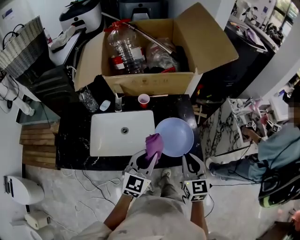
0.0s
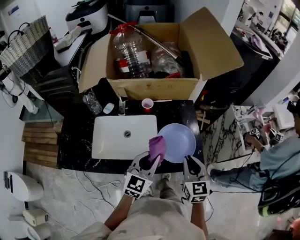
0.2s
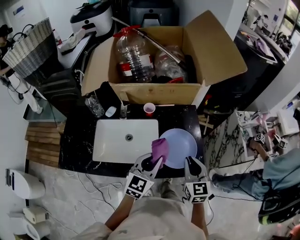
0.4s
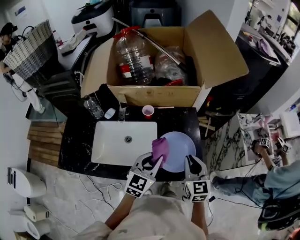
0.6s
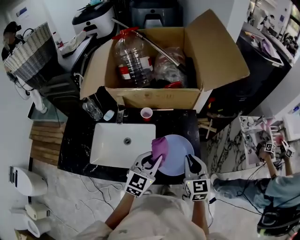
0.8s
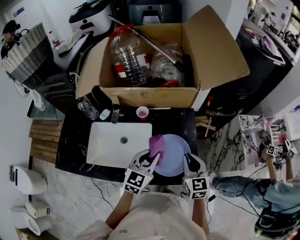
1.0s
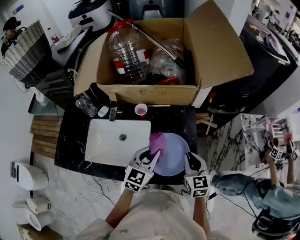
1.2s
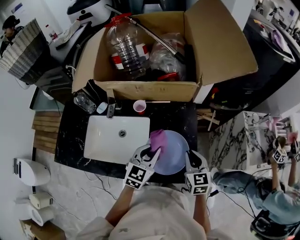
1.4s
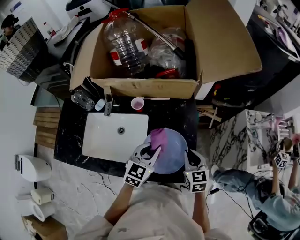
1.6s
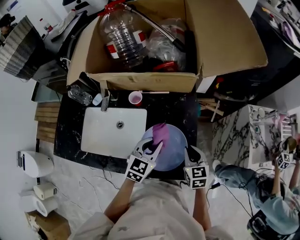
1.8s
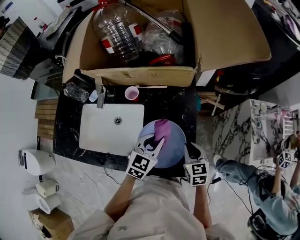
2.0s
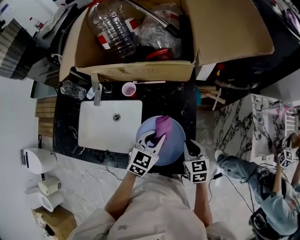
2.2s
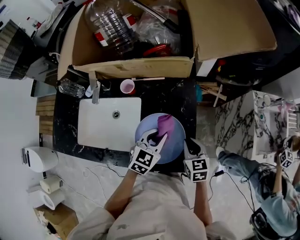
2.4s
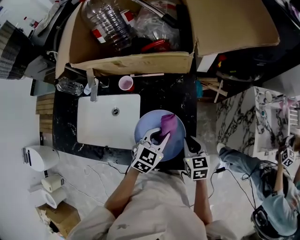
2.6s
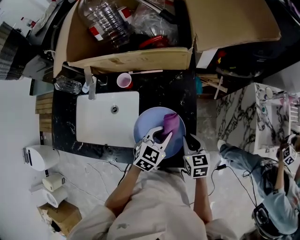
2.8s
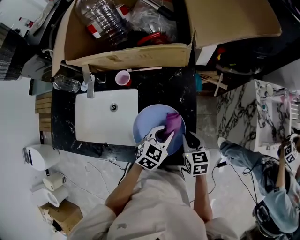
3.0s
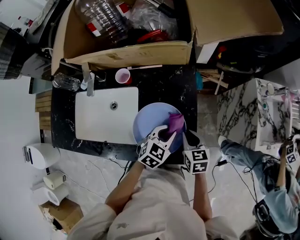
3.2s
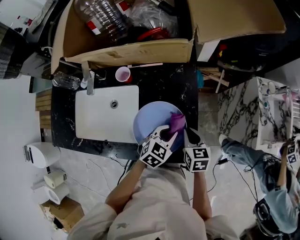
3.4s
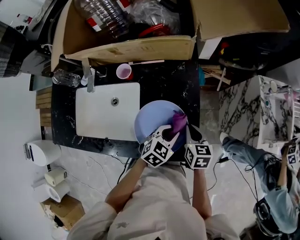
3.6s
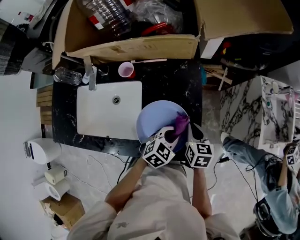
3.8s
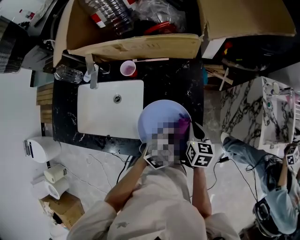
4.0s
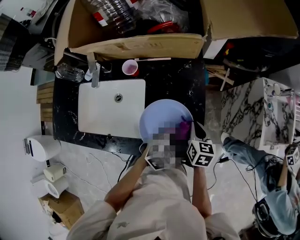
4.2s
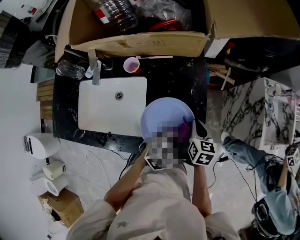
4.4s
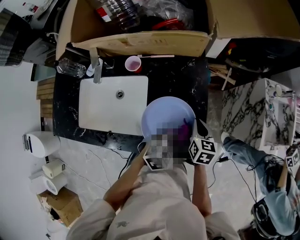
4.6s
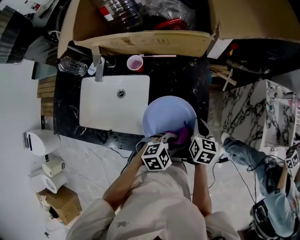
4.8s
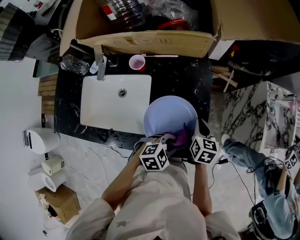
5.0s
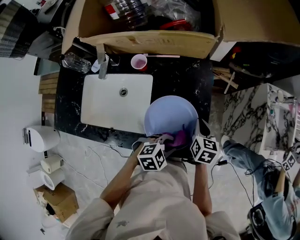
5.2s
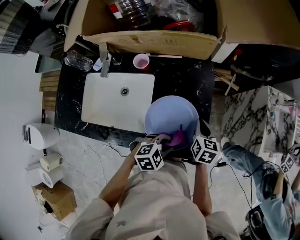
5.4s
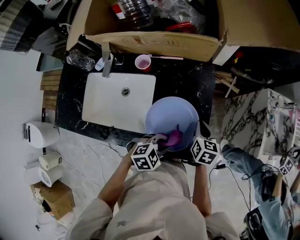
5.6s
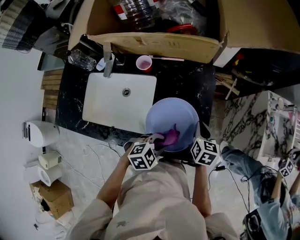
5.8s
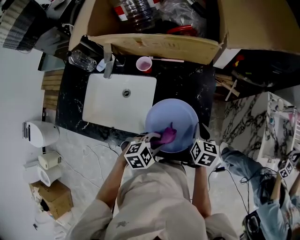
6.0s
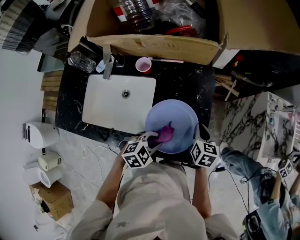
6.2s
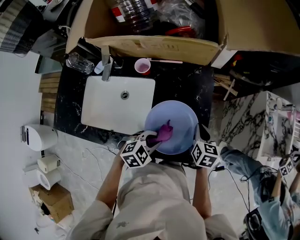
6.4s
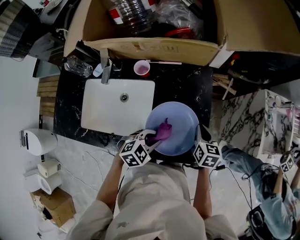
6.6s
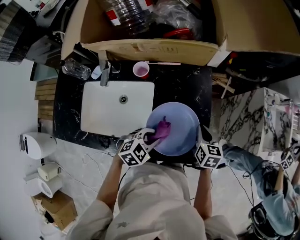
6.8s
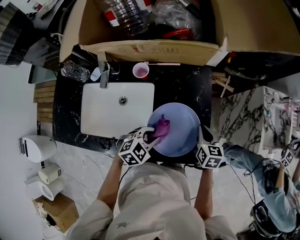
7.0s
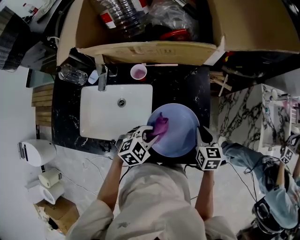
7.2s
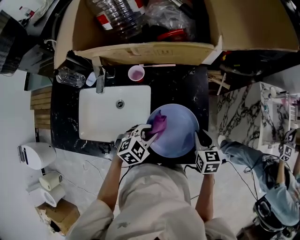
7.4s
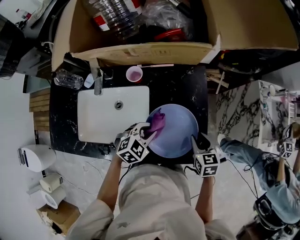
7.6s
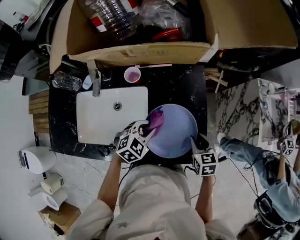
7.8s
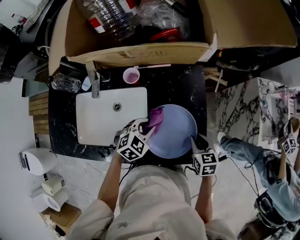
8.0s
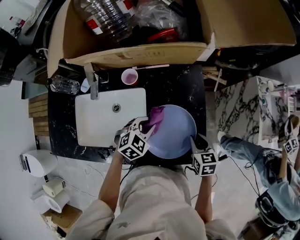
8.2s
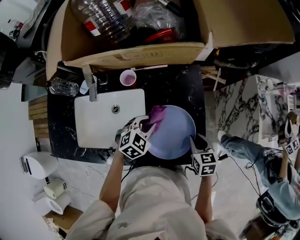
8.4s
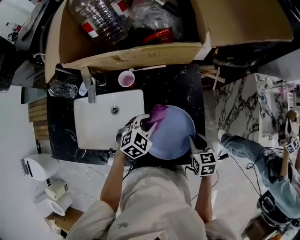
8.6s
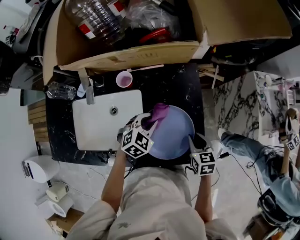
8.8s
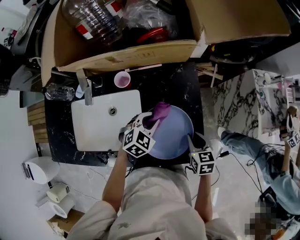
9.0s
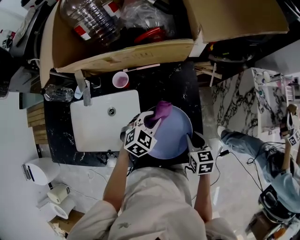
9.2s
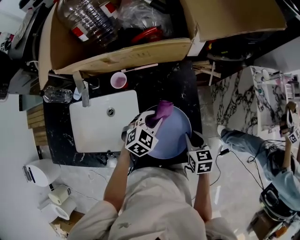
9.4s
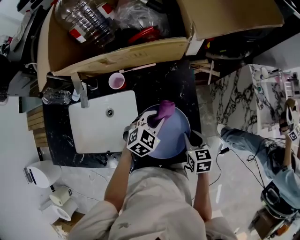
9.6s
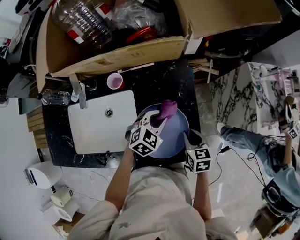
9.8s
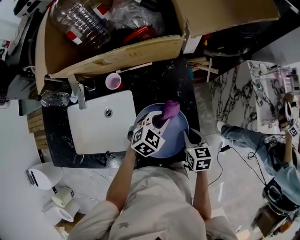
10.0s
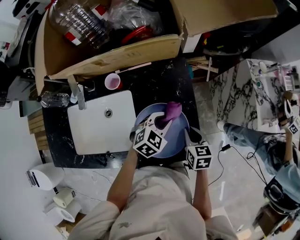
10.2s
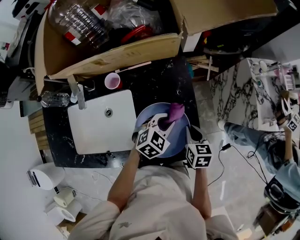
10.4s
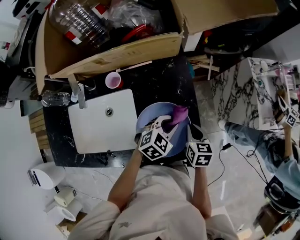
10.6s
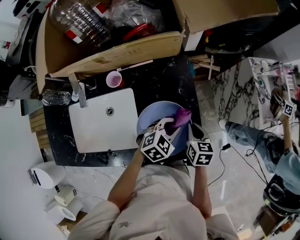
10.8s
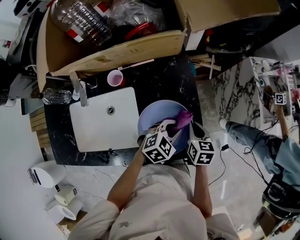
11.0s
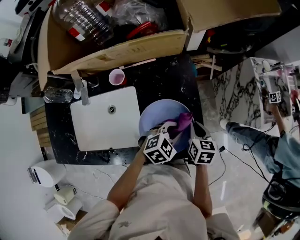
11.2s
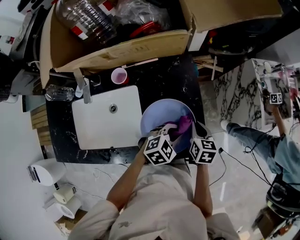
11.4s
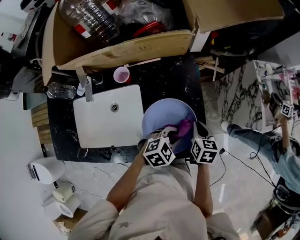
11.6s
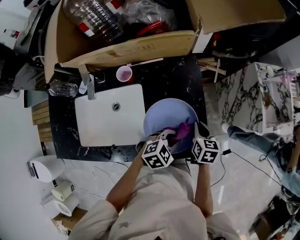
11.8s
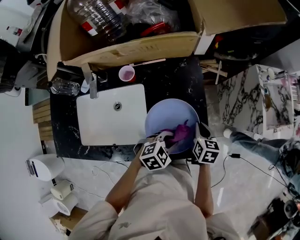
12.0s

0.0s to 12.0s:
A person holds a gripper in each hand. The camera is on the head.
0.0s to 1.6s: The right gripper is displaced forward, downward and to the right by about 20 cm, while the left gripper moves forward, to the right and downward, roughly 20 cm.
1.6s to 3.0s: The right gripper is displaced downward by roughly 10 cm. Meanwhile the left gripper travels downward and to the right by about 15 cm.
3.0s to 4.4s: The left gripper shifts some 5 cm backward, and turns by roughly 20 degrees.
4.4s to 6.0s: The left gripper shifts some 10 cm to the left and backward.
6.0s to 7.6s: The left gripper is displaced to the left and forward by about 10 cm; the right gripper opens its fingers.
7.6s to 9.0s: The left gripper moves forward, about 5 cm.
9.0s to 10.4s: The left gripper travels to the right by about 10 cm.
10.4s to 12.0s: The left gripper moves backward, approximately 10 cm.

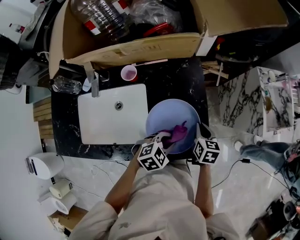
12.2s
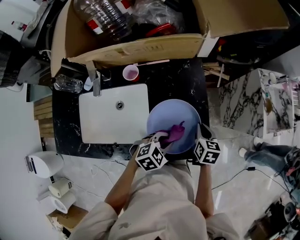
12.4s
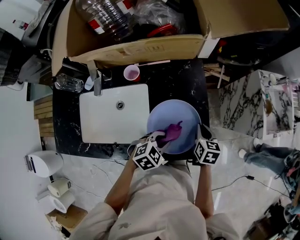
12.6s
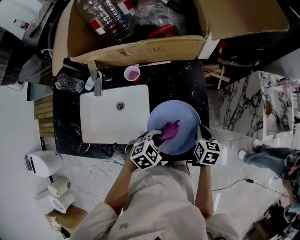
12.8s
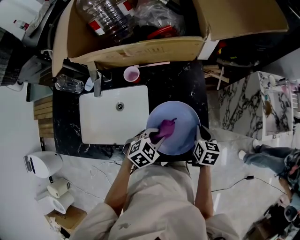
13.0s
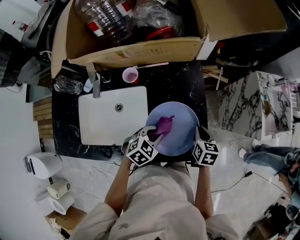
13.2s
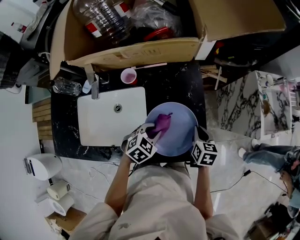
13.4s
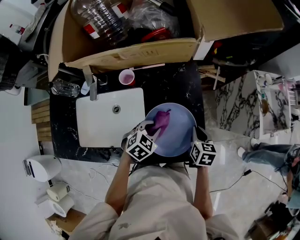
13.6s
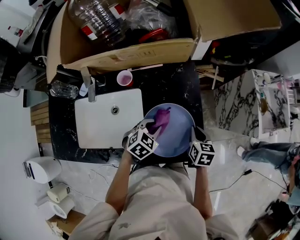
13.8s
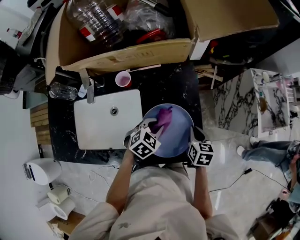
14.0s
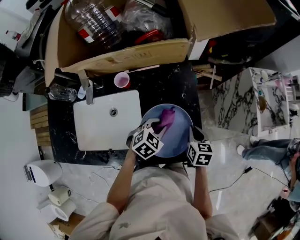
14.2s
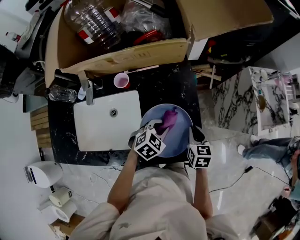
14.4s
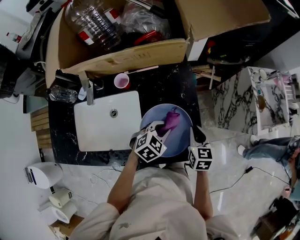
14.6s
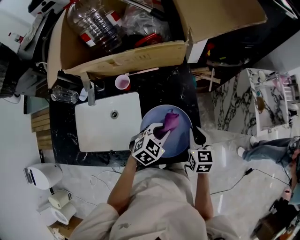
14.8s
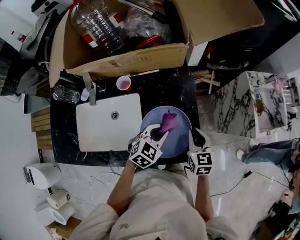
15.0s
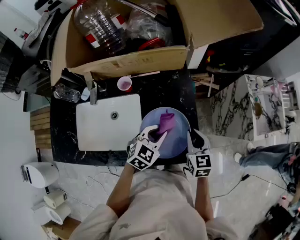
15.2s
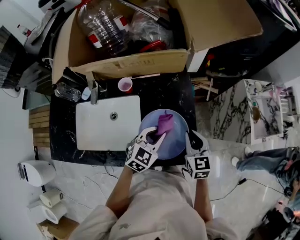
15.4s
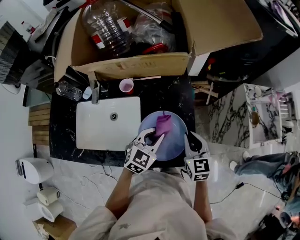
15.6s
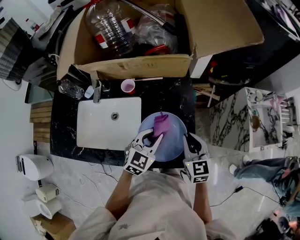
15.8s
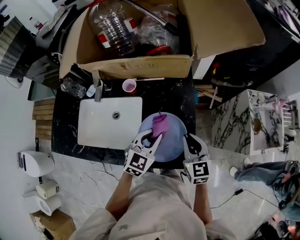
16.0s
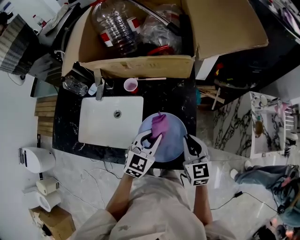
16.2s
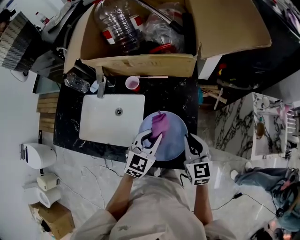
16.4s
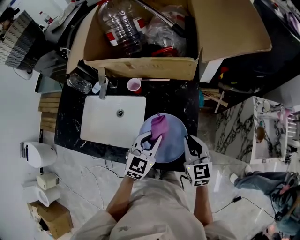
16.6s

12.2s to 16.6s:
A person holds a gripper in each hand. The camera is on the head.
12.2s to 13.6s: The left gripper shifts approximately 10 cm to the left and forward.
13.6s to 15.2s: Both grippers move upward, roughly 10 cm. The right gripper changes its angle by about 20 degrees.
15.2s to 16.6s: The right gripper heads upward, covering roughly 5 cm, while the left gripper rotates approximately 20 degrees.

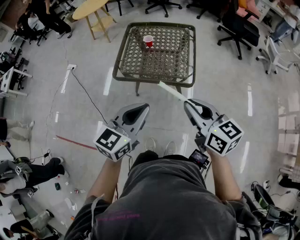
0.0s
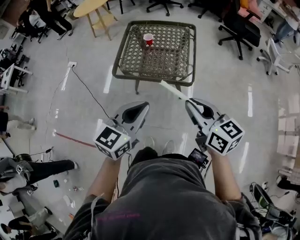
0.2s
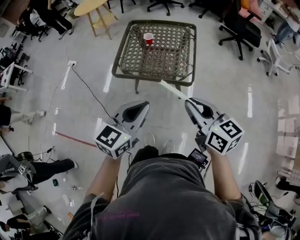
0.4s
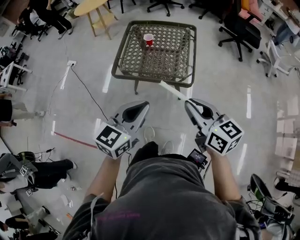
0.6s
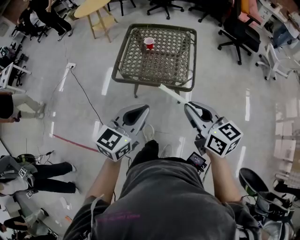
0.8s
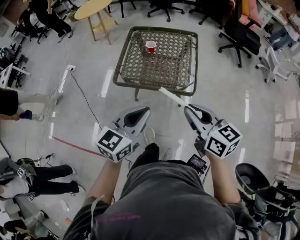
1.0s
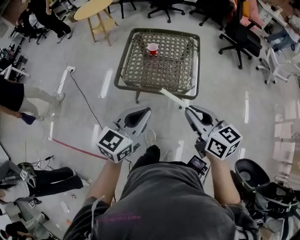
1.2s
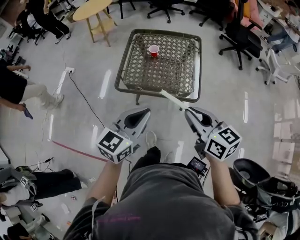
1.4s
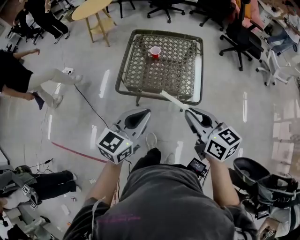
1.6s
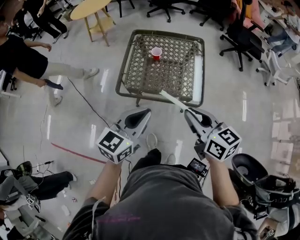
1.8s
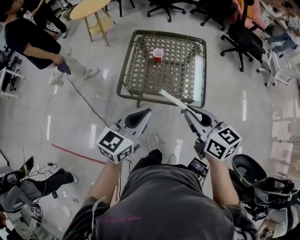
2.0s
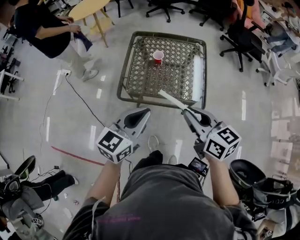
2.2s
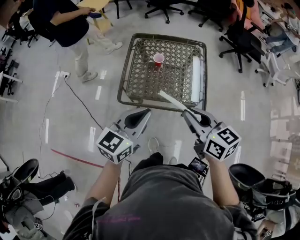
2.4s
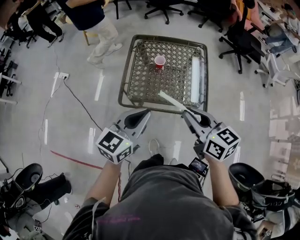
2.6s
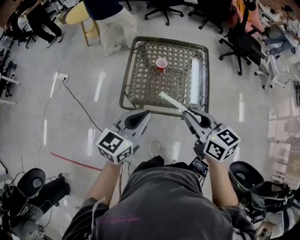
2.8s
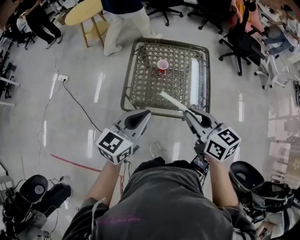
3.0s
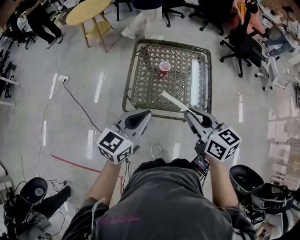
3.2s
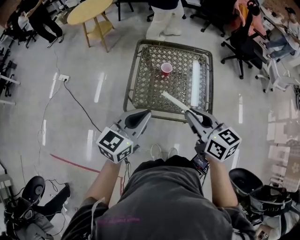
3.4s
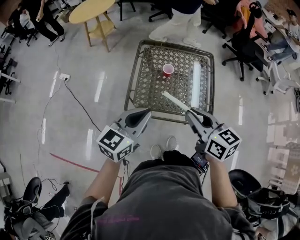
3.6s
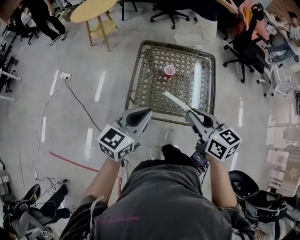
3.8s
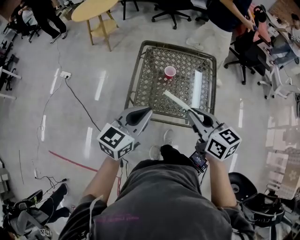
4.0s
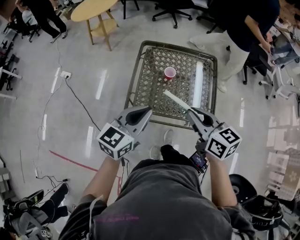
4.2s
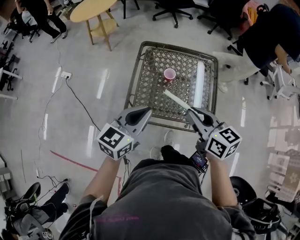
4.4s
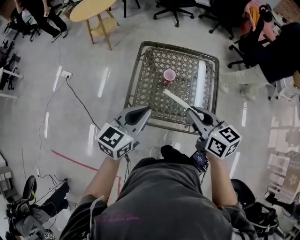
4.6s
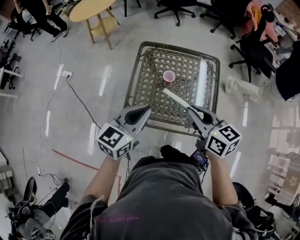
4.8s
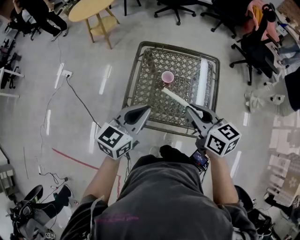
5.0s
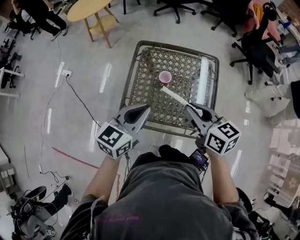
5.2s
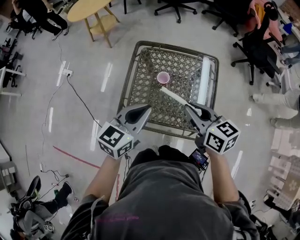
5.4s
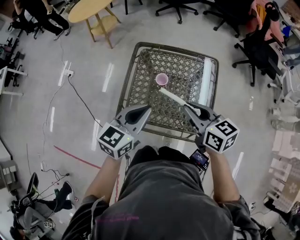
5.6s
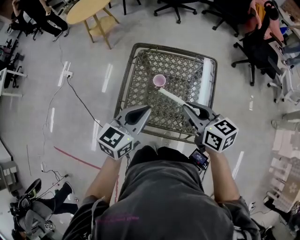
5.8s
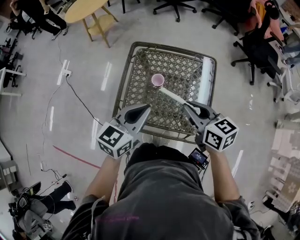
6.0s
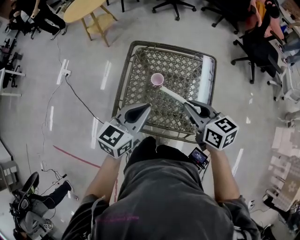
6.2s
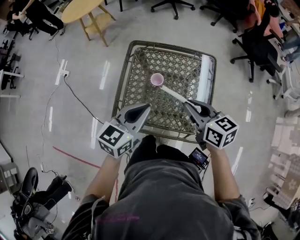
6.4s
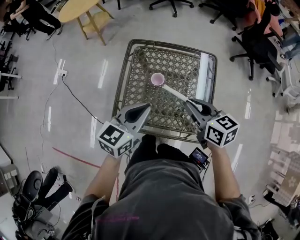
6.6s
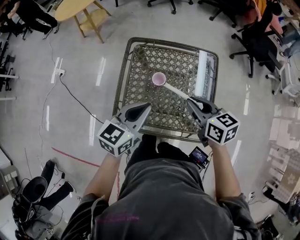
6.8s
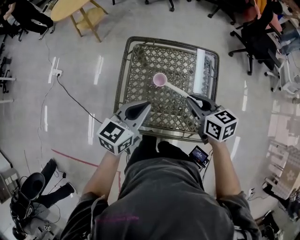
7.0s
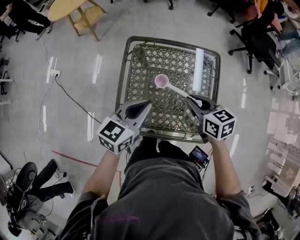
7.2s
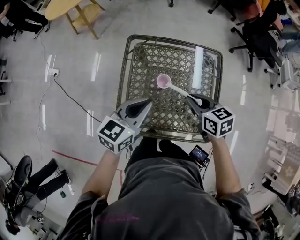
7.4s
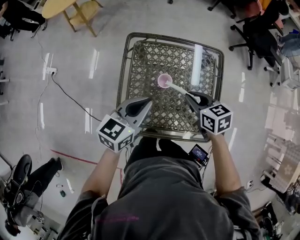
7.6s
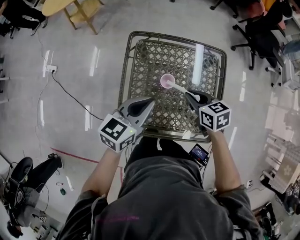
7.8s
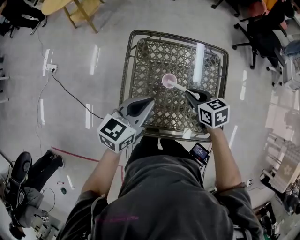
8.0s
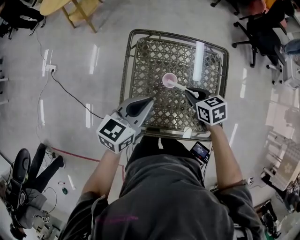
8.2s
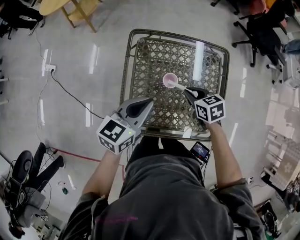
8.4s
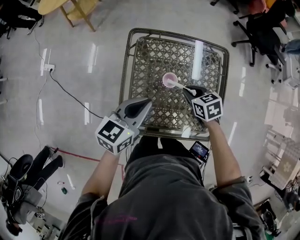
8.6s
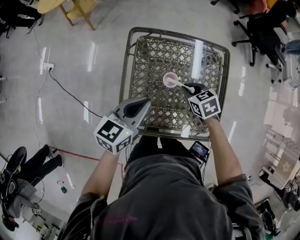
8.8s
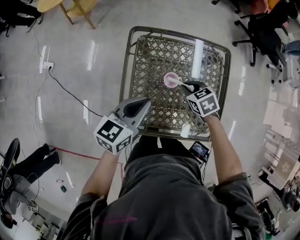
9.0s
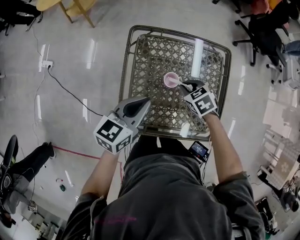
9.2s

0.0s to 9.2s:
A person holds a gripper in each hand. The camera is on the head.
0.0s to 1.6s: Both grippers move forward and to the left, approximately 10 cm.
1.6s to 3.0s: Both grippers move forward and to the left, some 15 cm.
3.0s to 4.6s: Both grippers move forward, about 10 cm.
4.6s to 6.2s: The right gripper shifts some 10 cm forward and to the right. Meanwhile the left gripper shifts some 10 cm to the right and forward.
6.2s to 7.6s: The right gripper moves downward, forward and to the left, some 15 cm. The left gripper travels forward, to the left and downward by some 15 cm.
7.6s to 9.2s: The right gripper shifts about 10 cm downward, and turns by about 30 degrees.
